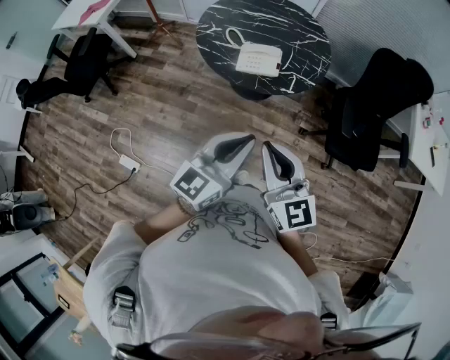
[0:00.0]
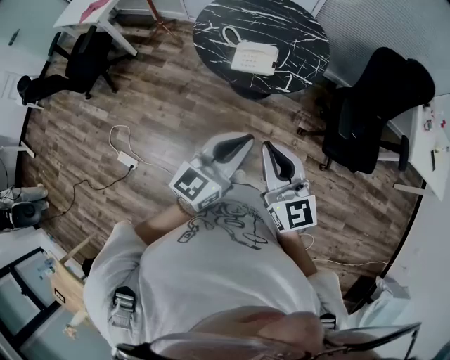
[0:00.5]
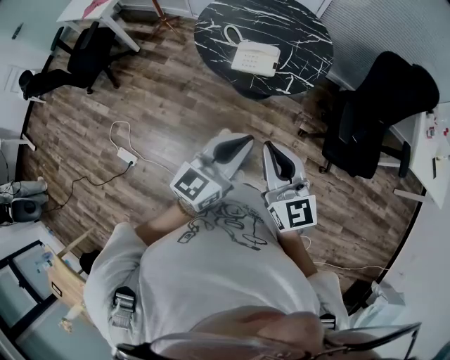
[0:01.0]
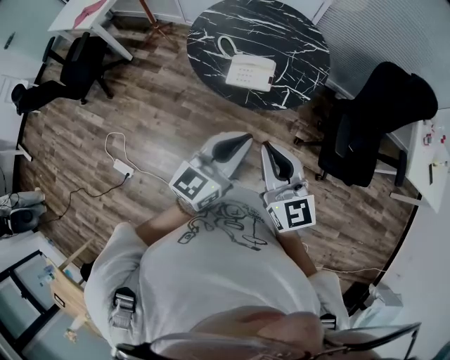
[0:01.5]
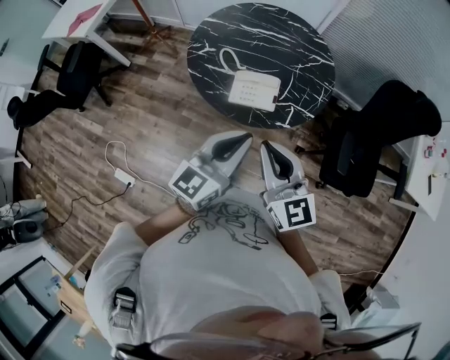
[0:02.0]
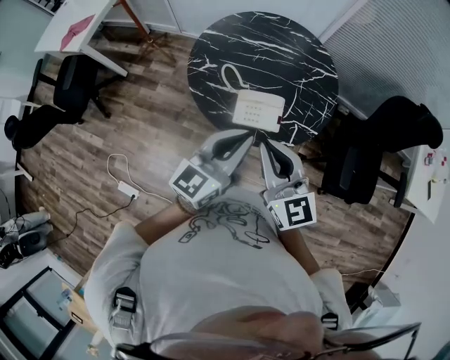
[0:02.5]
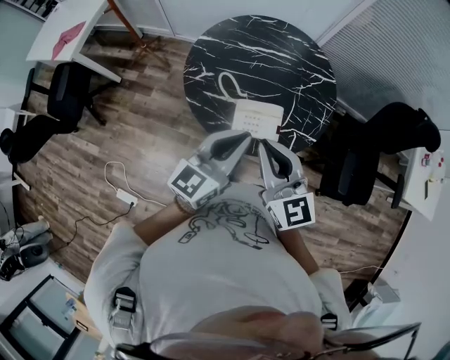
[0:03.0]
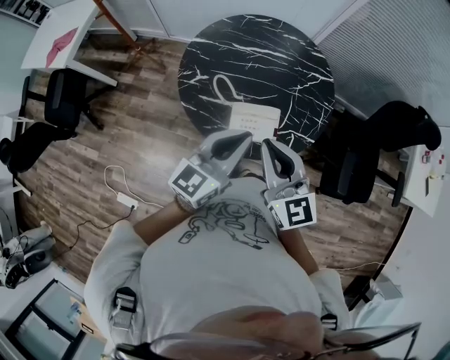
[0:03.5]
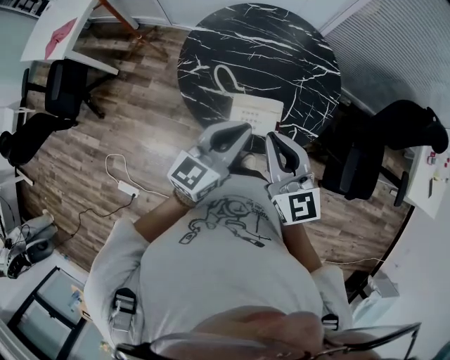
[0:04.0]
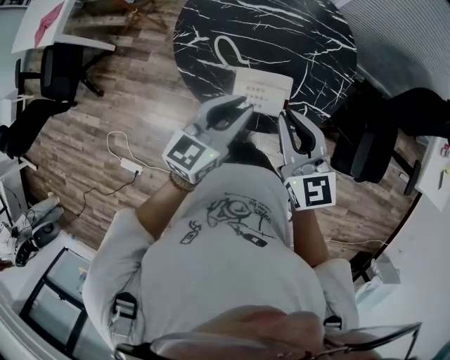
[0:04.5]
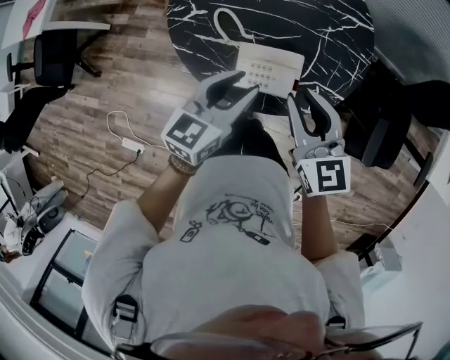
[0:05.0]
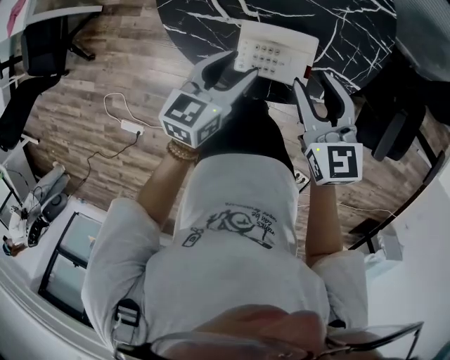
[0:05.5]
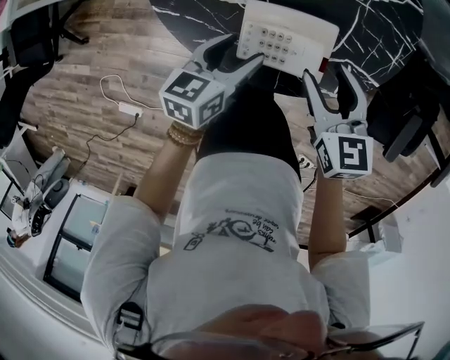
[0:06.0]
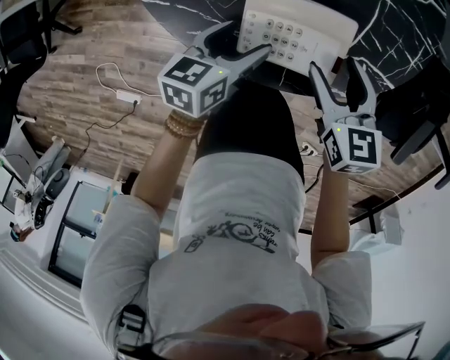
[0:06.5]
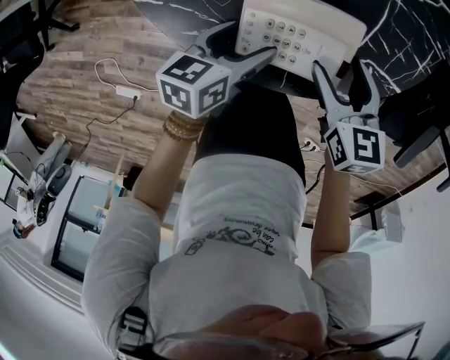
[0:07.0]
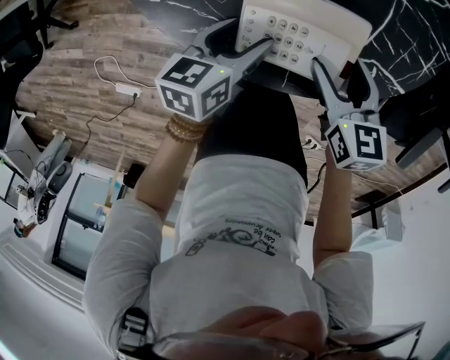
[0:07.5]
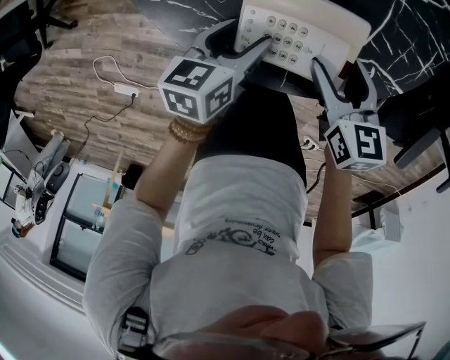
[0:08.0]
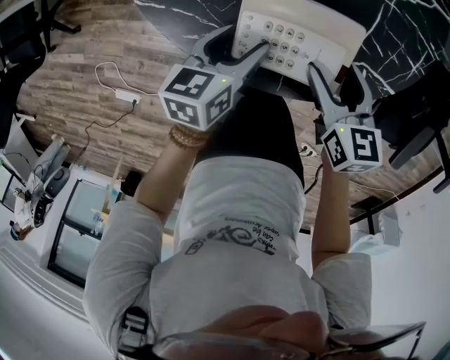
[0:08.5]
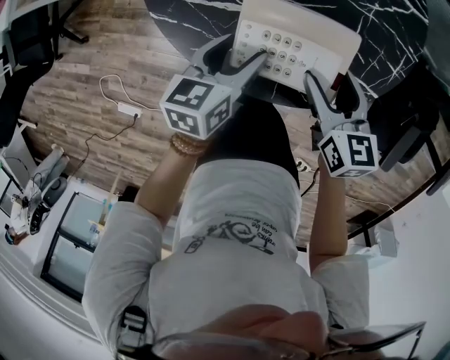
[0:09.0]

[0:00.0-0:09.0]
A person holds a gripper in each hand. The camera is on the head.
0:00.0 to 0:02.0: Both grippers travel together forward, approximately 25 cm.
0:02.0 to 0:04.5: The right gripper travels forward by about 25 cm. Meanwhile the left gripper travels forward and downward by about 25 cm.
0:04.5 to 0:07.0: Both grippers travel together downward, some 35 cm. The left gripper turns by approximately 40 degrees, and opens. The right gripper changes its angle by some 30 degrees, and opens.
0:07.0 to 0:09.0: Both grippers travel together upward, approximately 10 cm.

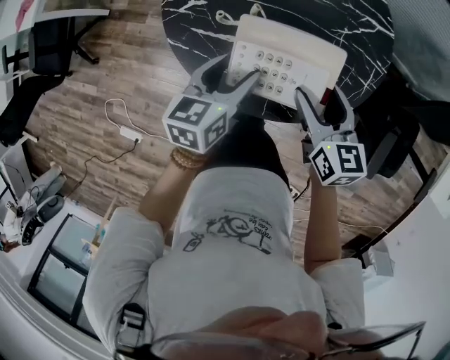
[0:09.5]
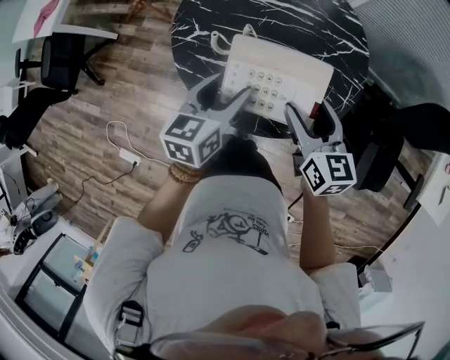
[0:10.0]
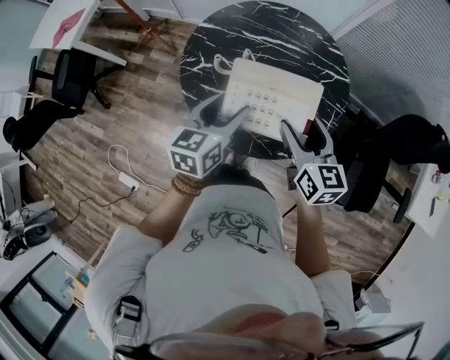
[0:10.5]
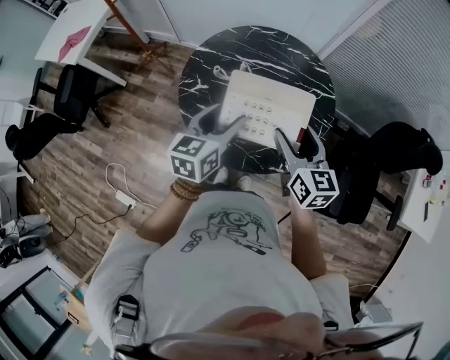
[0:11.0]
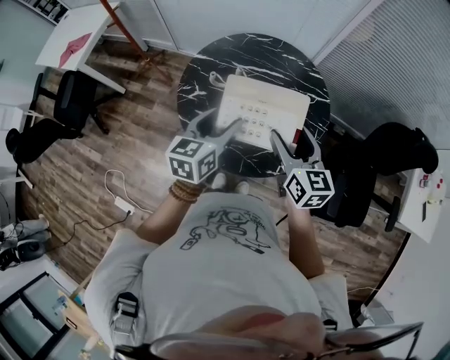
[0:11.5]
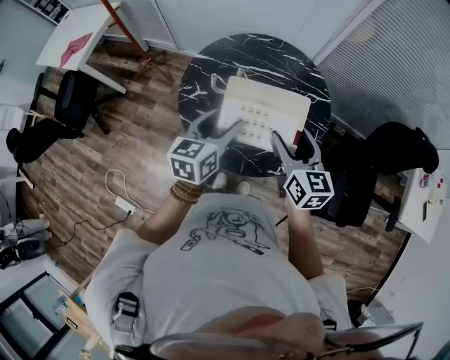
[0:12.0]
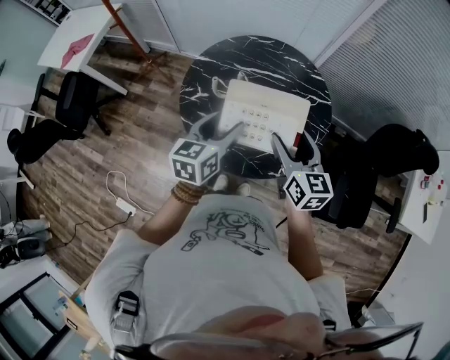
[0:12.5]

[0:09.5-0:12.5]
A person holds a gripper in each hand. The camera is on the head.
0:09.5 to 0:11.0: The grippers both shift upward by about 25 cm.
0:11.0 to 0:12.5: The grippers move only a little.

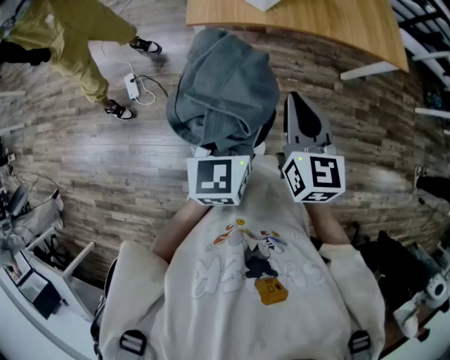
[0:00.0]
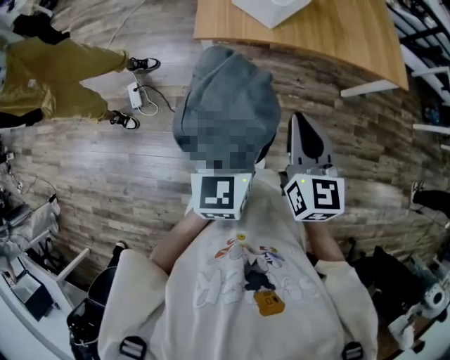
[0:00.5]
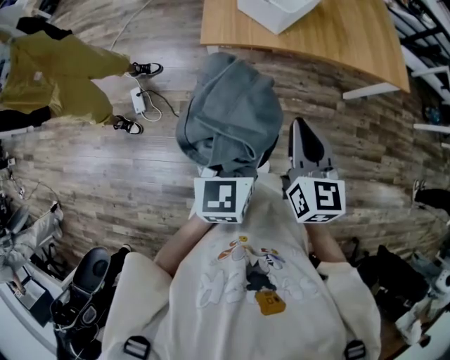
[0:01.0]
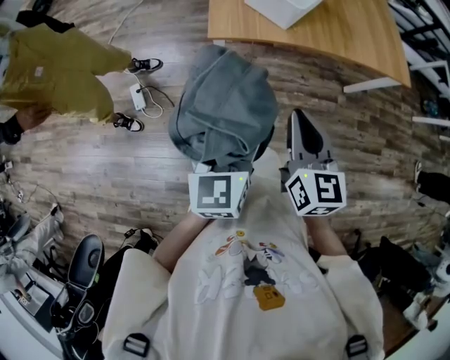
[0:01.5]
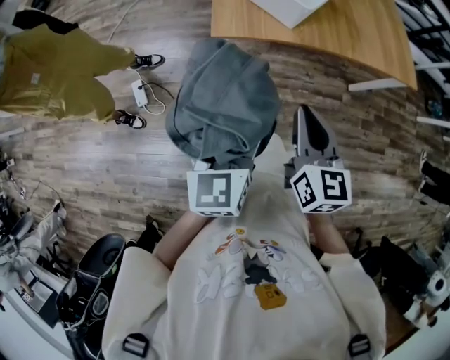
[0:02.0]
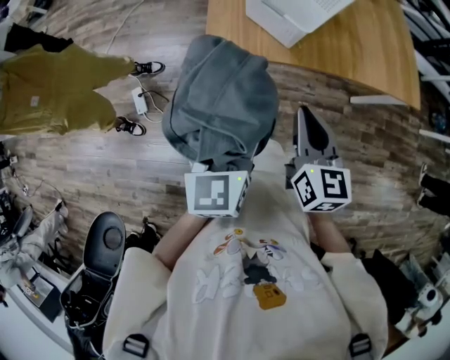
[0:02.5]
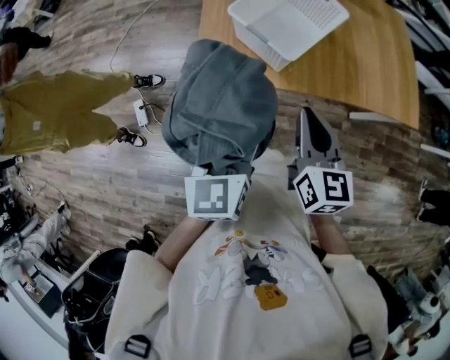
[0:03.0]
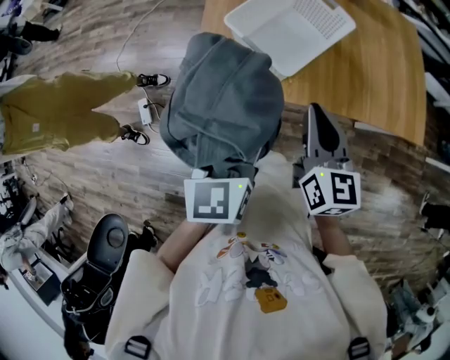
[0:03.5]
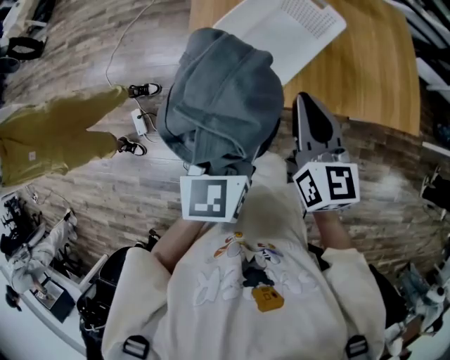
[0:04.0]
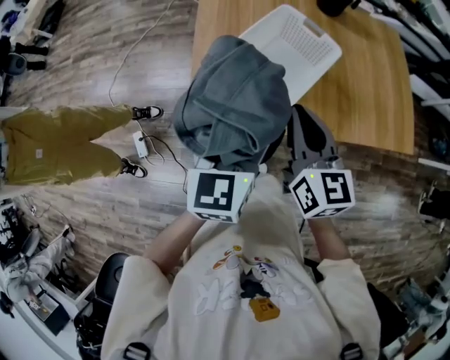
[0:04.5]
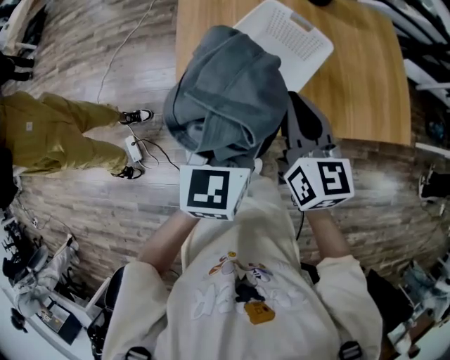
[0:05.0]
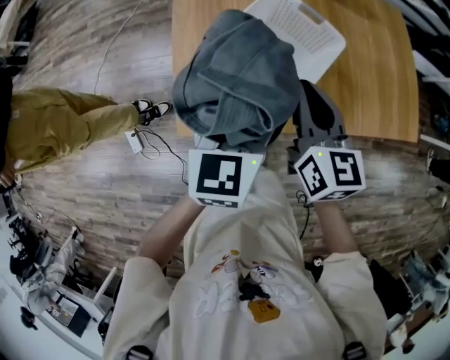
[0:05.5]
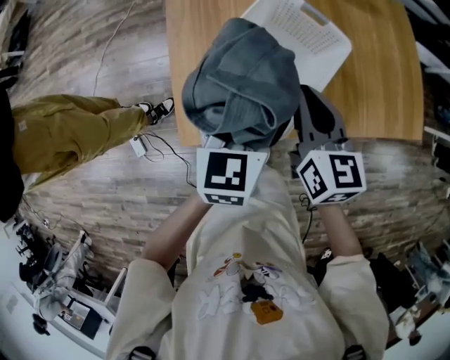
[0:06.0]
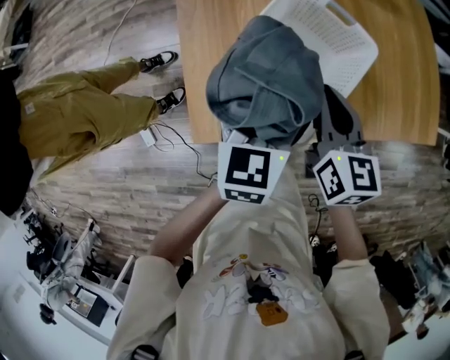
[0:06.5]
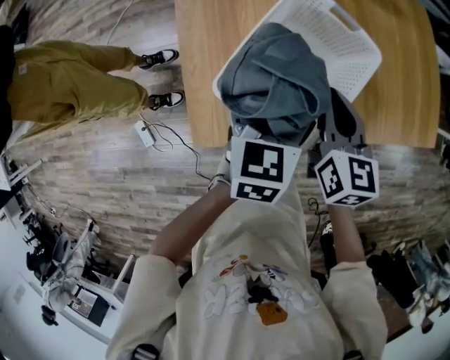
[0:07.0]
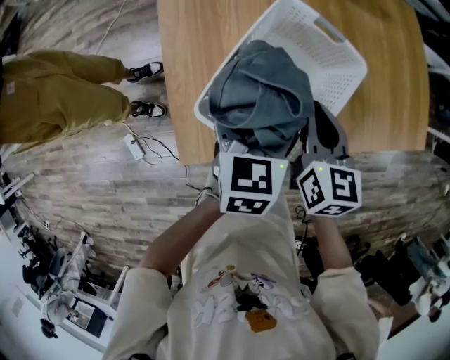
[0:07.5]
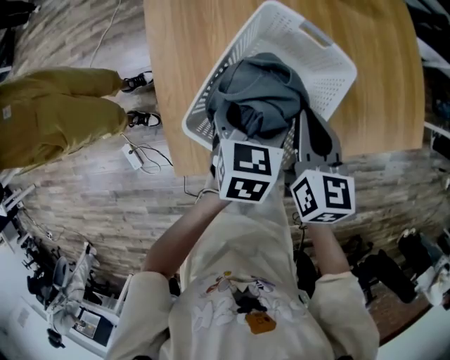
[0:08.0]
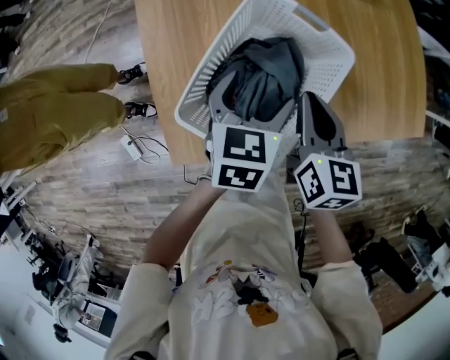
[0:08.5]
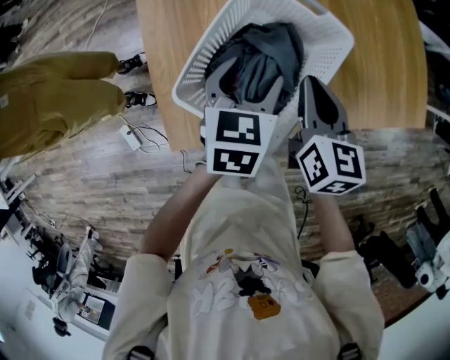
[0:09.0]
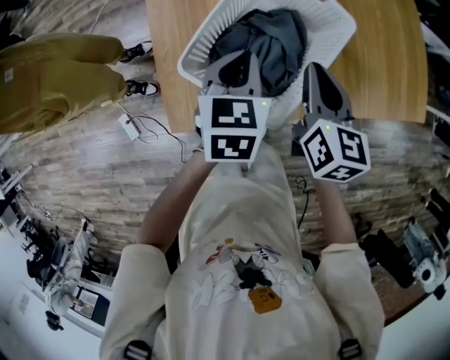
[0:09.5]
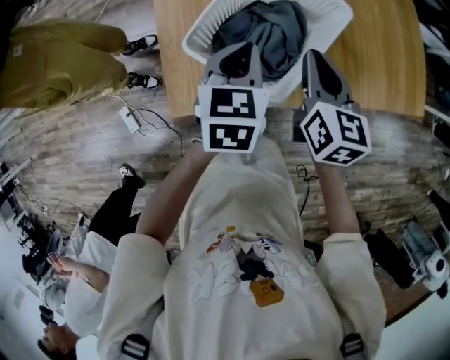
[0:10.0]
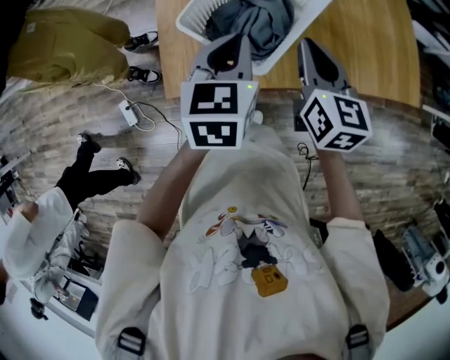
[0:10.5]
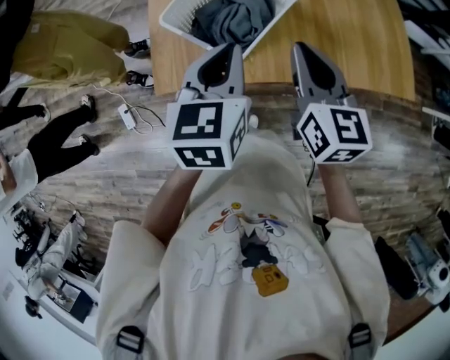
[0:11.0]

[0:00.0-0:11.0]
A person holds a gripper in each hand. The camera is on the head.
0:00.0 to 0:02.0: Both grippers travel together to the left and forward, about 10 cm.
0:02.0 to 0:03.5: The two grippers go about 30 cm forward and to the right.
0:03.5 to 0:05.5: Both grippers travel together forward, about 15 cm.
0:05.5 to 0:07.5: The two grippers go roughly 10 cm downward and forward.
0:07.5 to 0:09.0: There are only small adjustments of the grippers.
0:09.0 to 0:11.0: Both grippers travel together backward and upward, about 20 cm. The right gripper turns by approximately 20 degrees. Meanwhile the left gripper closes up.

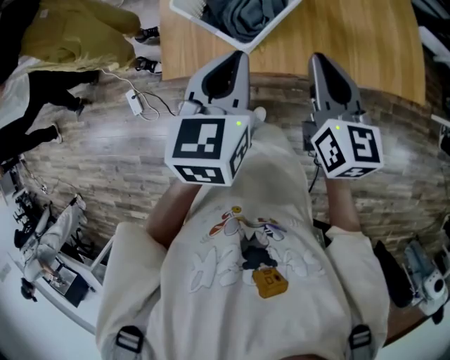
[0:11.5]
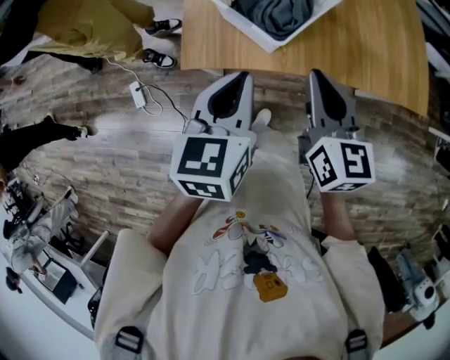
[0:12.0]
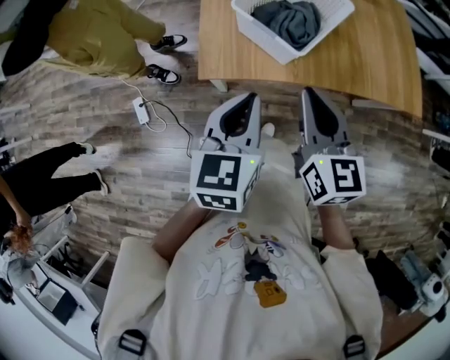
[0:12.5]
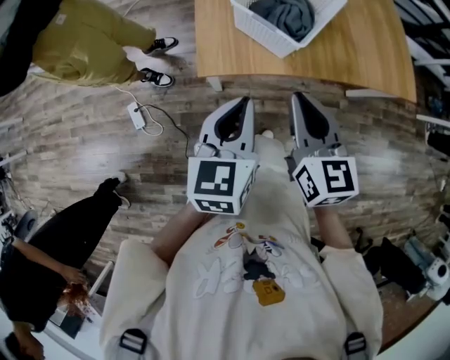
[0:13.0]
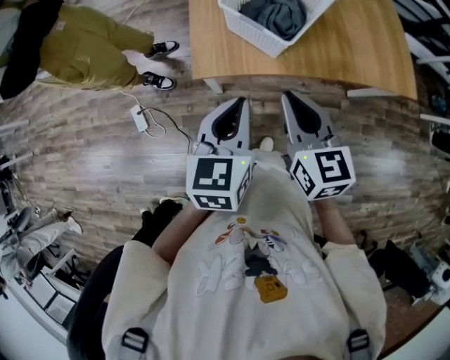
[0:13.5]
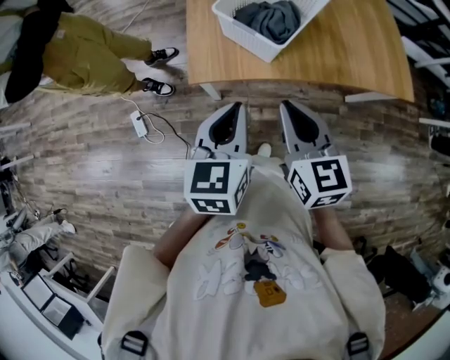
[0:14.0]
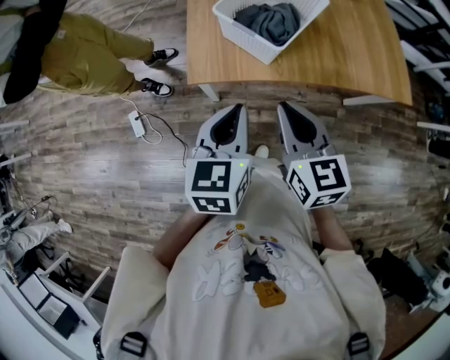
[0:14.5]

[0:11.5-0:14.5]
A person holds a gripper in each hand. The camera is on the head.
0:11.5 to 0:13.0: Both grippers travel together to the left and backward, some 20 cm.
0:13.0 to 0:14.5: The left gripper ends up about 5 cm from where it was.
